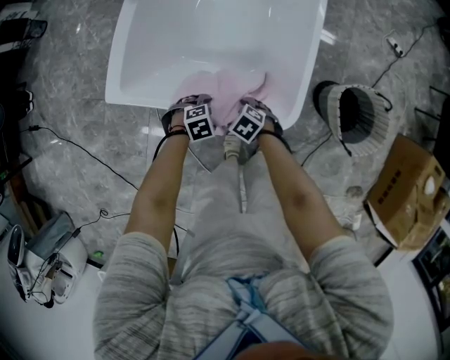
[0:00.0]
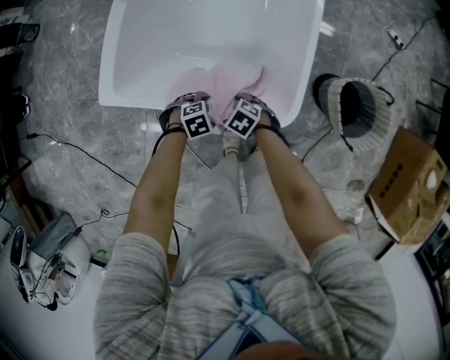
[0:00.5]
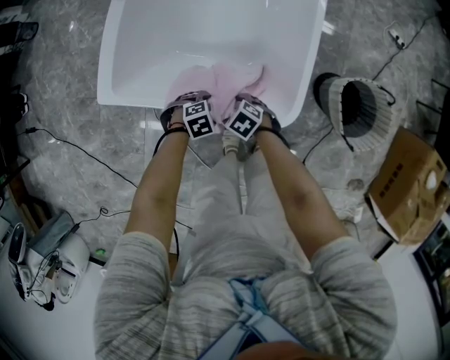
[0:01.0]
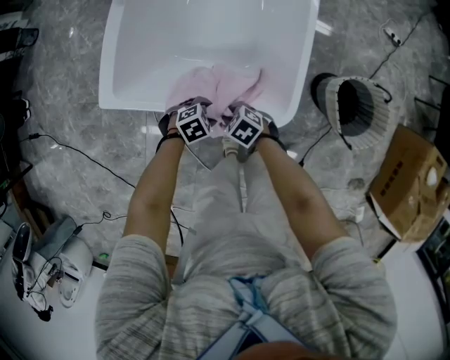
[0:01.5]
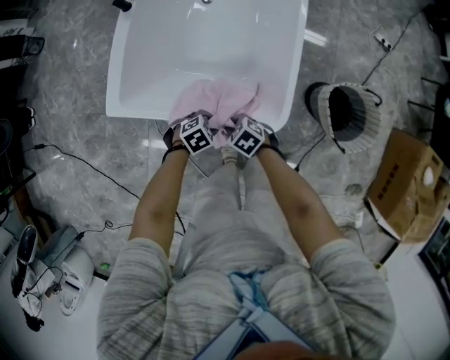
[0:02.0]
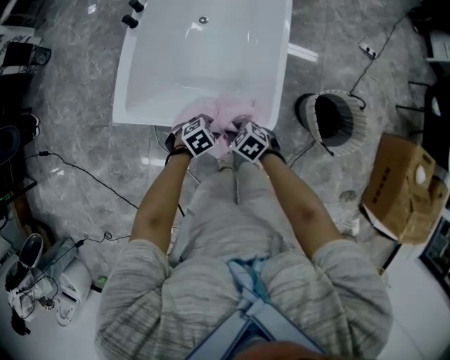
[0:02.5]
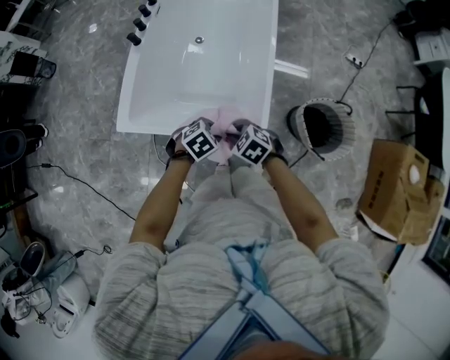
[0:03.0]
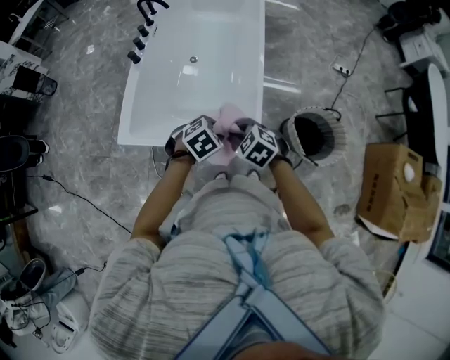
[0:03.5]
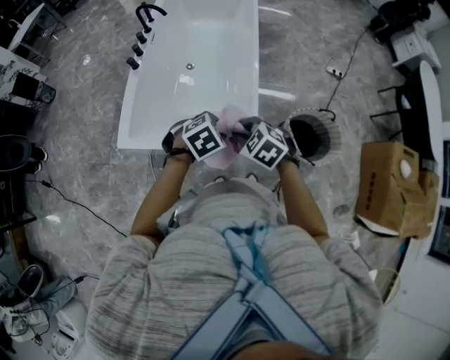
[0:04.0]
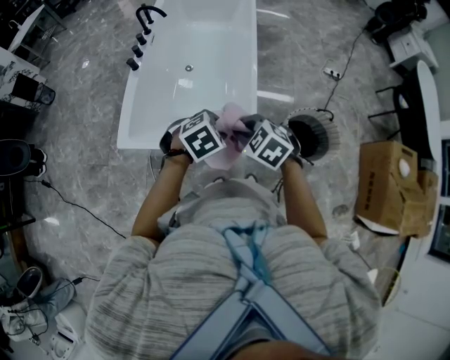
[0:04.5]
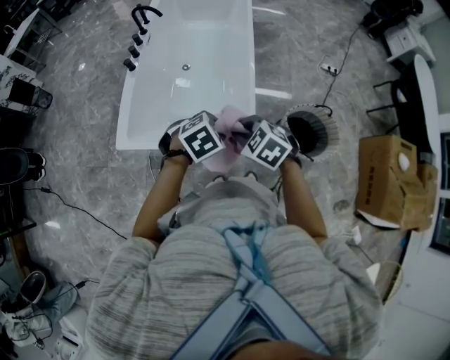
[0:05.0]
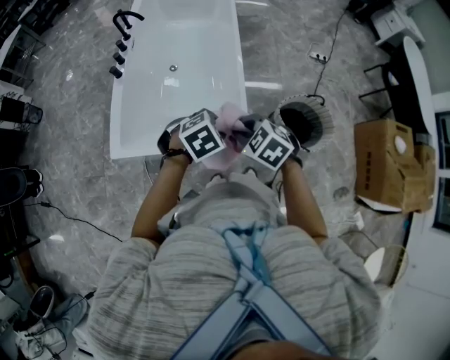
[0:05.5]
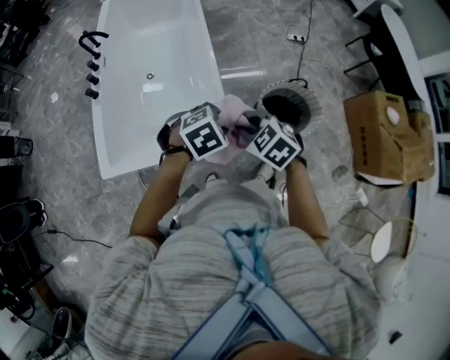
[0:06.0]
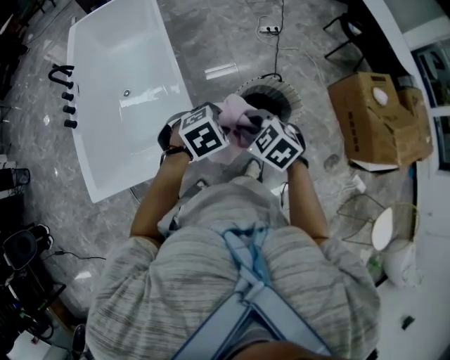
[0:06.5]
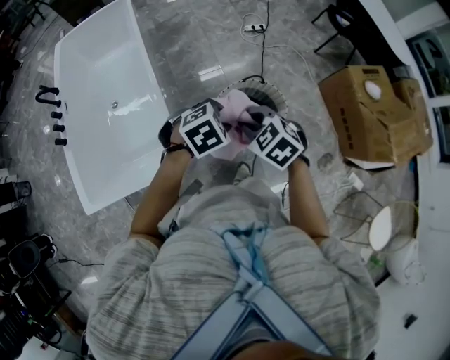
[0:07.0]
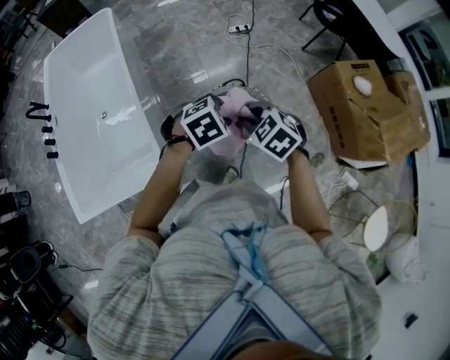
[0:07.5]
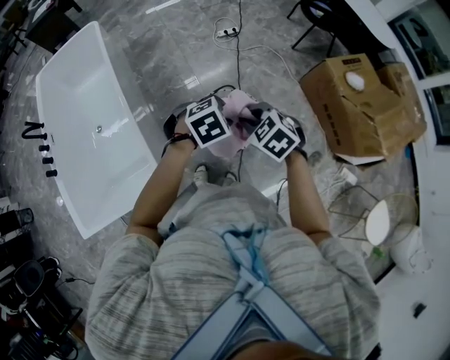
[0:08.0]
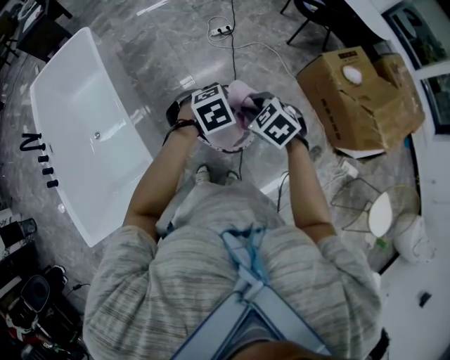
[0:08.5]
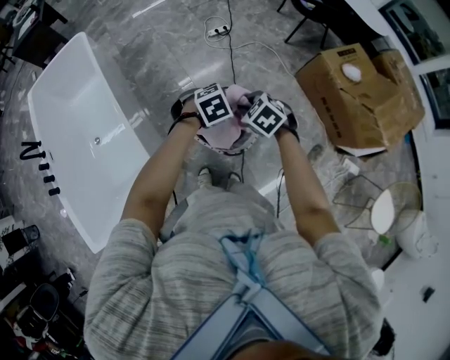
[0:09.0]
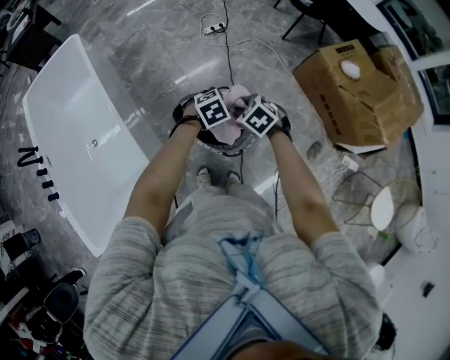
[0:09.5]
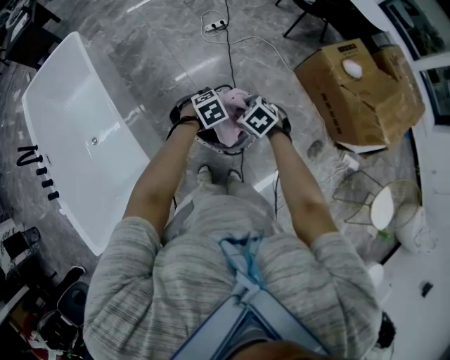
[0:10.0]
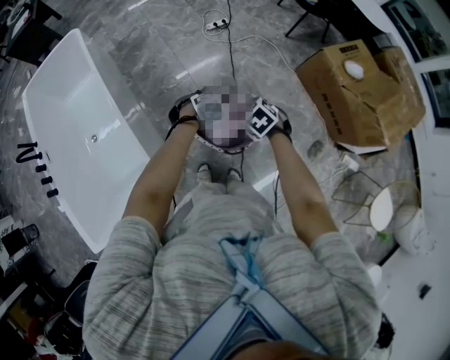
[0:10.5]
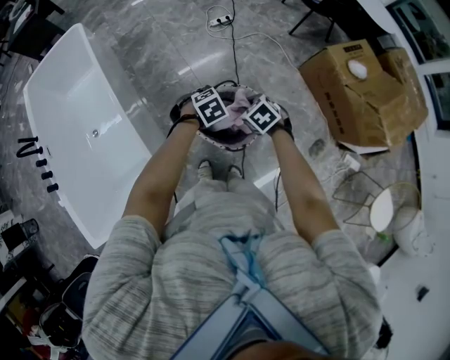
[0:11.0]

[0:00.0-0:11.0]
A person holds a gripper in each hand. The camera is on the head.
0.0 to 2.0 s: The right gripper goes some 5 cm upward, and closes its fingers; the left gripper ends up roughly 5 cm from where it was, and closes its fingers.
2.0 to 3.5 s: Both grippers travel together upward, approximately 25 cm. The right gripper turns by approximately 20 degrees.
3.5 to 5.5 s: Both grippers travel together upward, some 10 cm.
5.5 to 7.5 s: The two grippers travel together, to the right and forward, about 50 cm. The right gripper swivels roughly 20 degrees, while the left gripper changes its angle by some 20 degrees.
7.5 to 9.0 s: Both grippers travel together forward and downward, about 15 cm.
9.0 to 11.0 s: Both grippers move downward, approximately 10 cm.

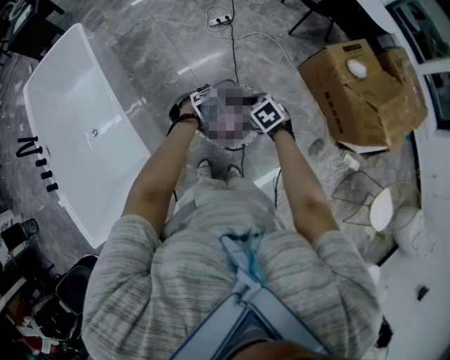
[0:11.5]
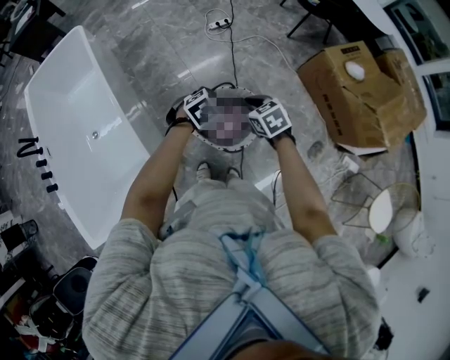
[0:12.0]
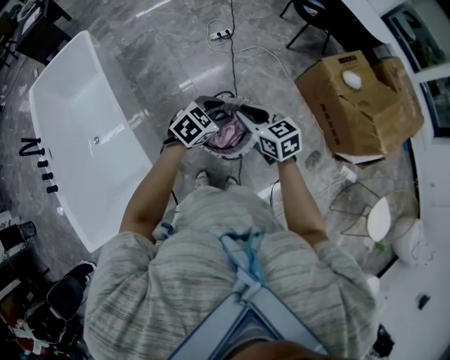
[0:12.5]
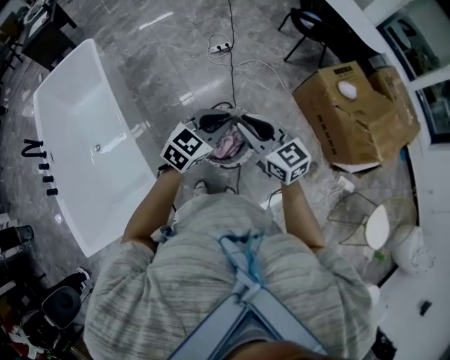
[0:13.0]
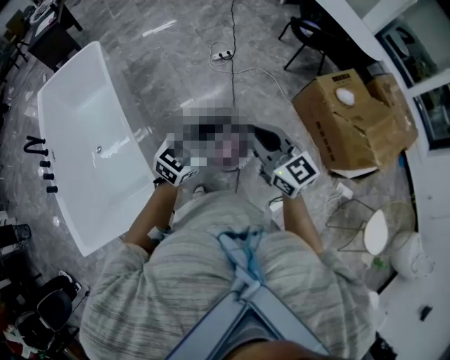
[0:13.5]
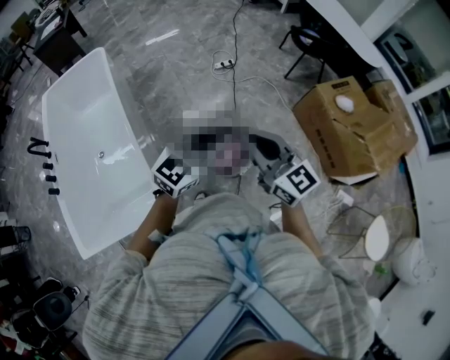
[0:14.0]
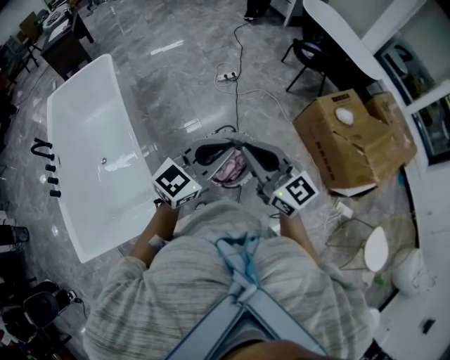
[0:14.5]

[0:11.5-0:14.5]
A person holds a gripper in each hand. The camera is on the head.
11.5 to 13.0 s: Both grippers move upward, some 20 cm. The left gripper angles its fingers upward, by roughly 50 degrees, and closes up. Meanwhile the right gripper angles its fingers upward, by some 50 degrees.
13.0 to 14.5 s: The grippers both shift upward and backward by roughly 15 cm. The left gripper swivels some 20 degrees.

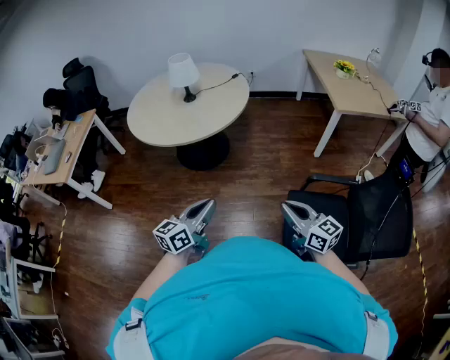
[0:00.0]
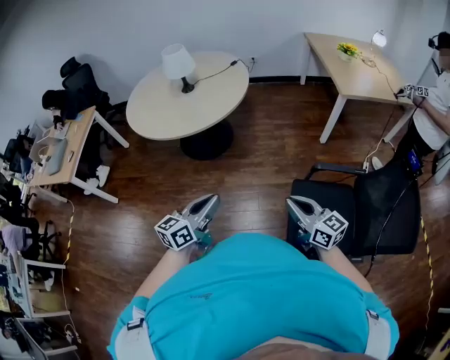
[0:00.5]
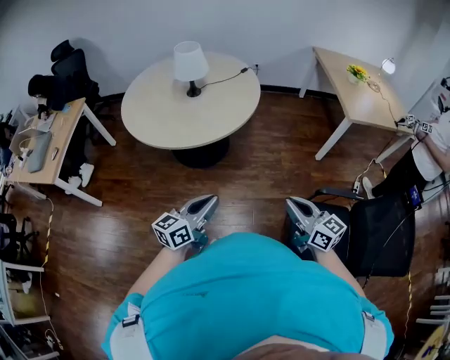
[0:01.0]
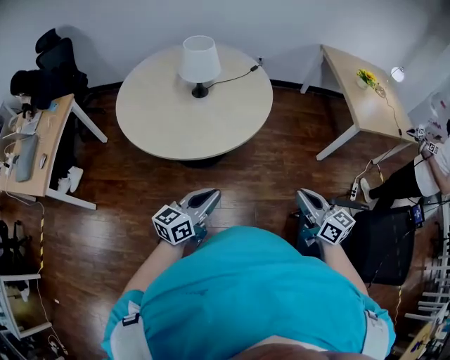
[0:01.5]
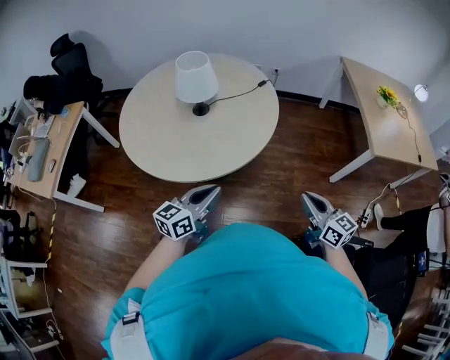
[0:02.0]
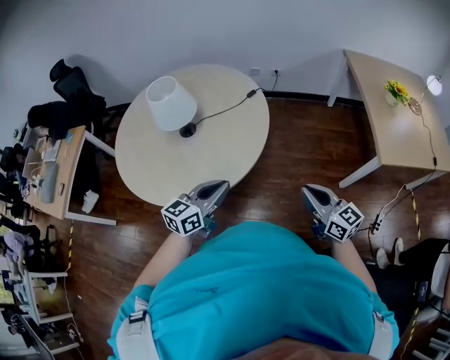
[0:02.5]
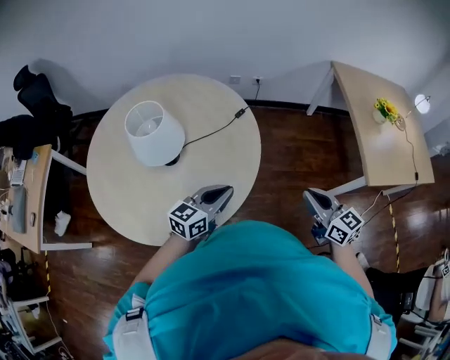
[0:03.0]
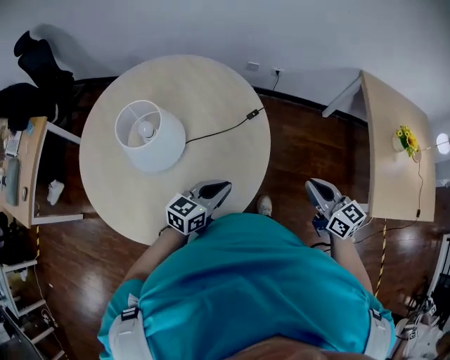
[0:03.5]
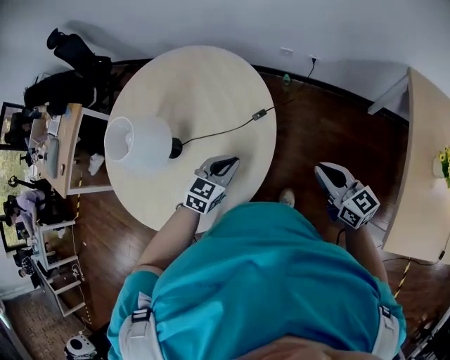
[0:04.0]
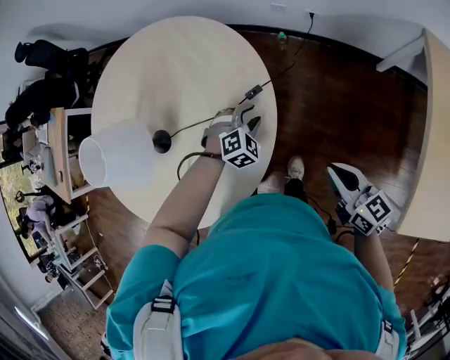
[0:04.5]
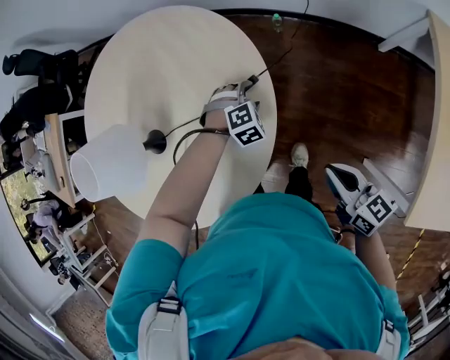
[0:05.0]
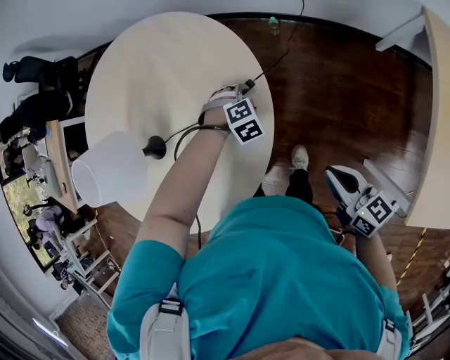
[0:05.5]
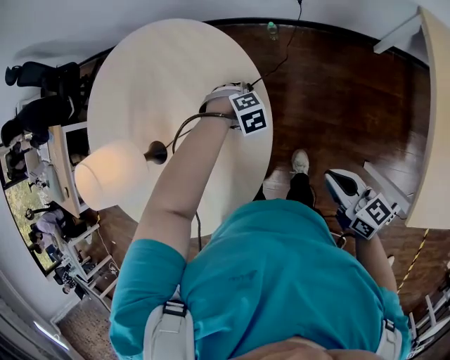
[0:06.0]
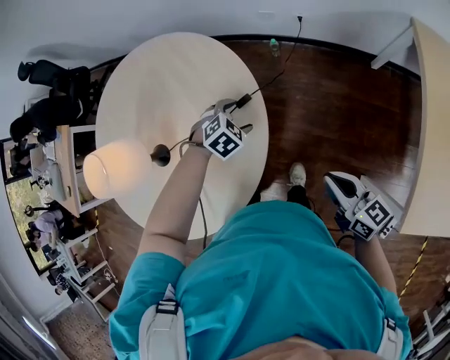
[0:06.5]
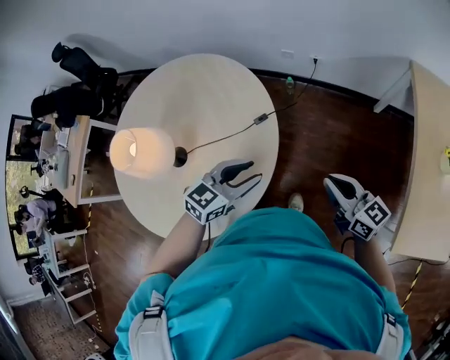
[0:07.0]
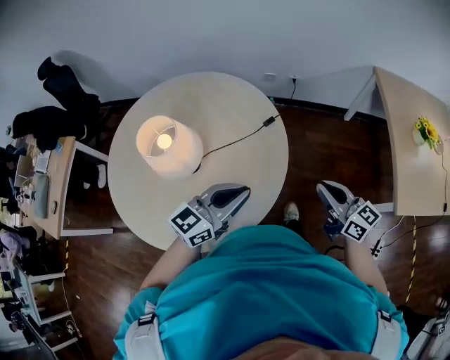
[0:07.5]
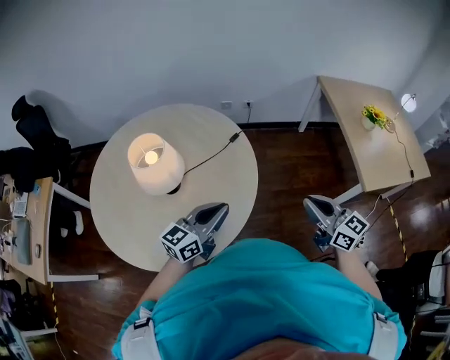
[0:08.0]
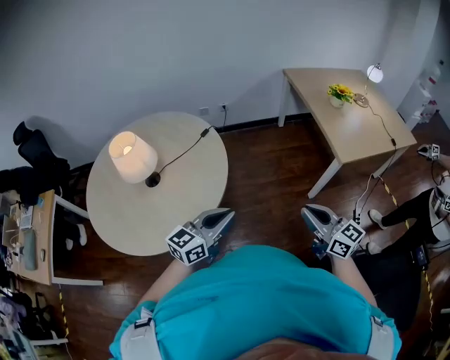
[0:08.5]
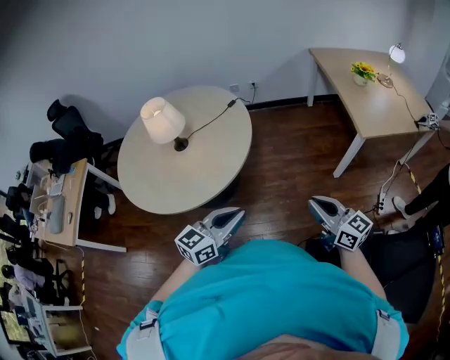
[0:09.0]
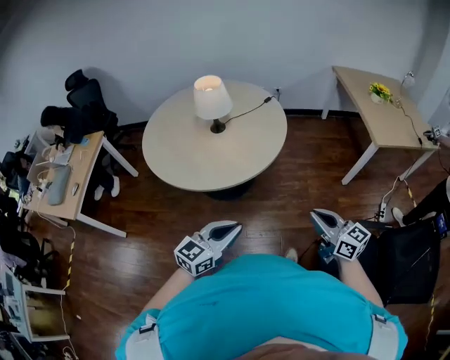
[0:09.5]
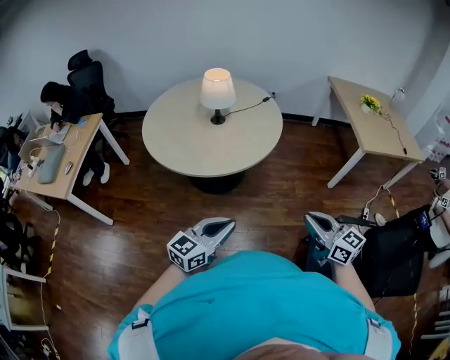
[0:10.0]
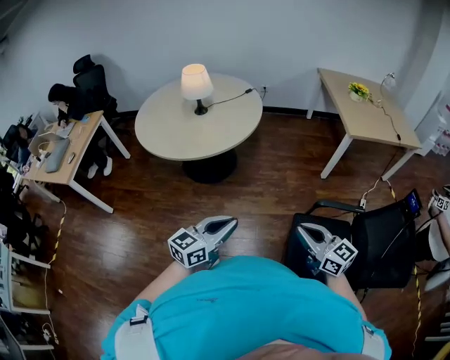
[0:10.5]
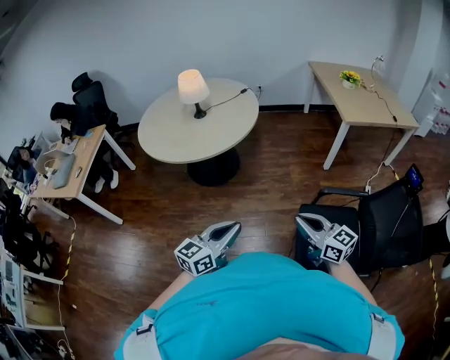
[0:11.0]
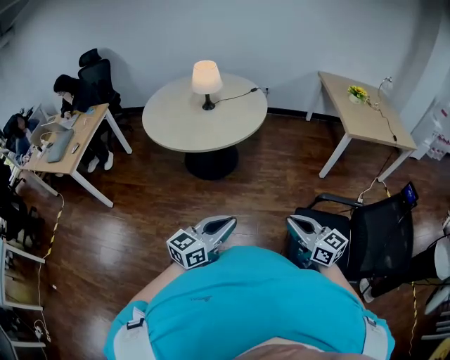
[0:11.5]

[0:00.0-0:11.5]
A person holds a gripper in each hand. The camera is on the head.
0.0 to 2.0 s: The two grippers travel together, forward, about 60 cm.
2.0 to 4.0 s: The pair of grippers is taken forward and to the right, approximately 80 cm. The left gripper tips its fingers downward by approximately 30 degrees.
4.0 to 6.0 s: The left gripper goes approximately 25 cm downward, angles its fingers downward, by about 50 degrees, and opens up, while the right gripper travels downward by about 15 cm, and rotates some 20 degrees.
6.0 to 7.5 s: The right gripper changes place by some 50 cm, and swivels approximately 20 degrees. Meanwhile the left gripper is displaced upward by roughly 50 cm, angles its fingers upward, by some 90 degrees, and closes up.
7.5 to 9.5 s: The pair of grippers is taken backward, about 80 cm.
9.5 to 11.5 s: Both grippers move backward, some 35 cm.

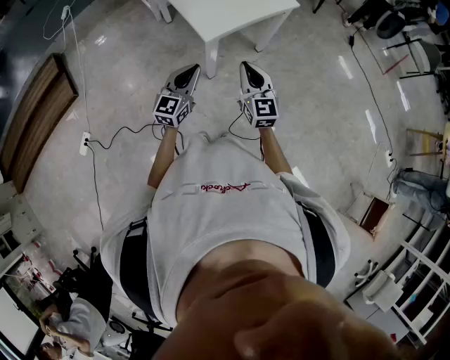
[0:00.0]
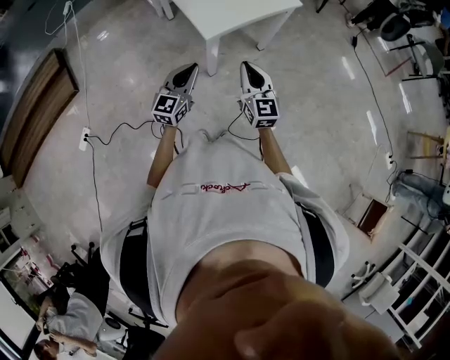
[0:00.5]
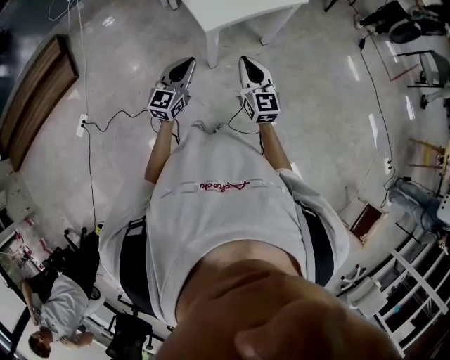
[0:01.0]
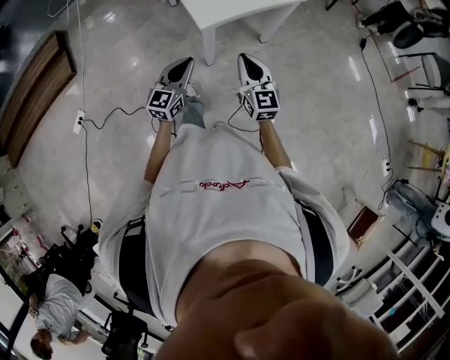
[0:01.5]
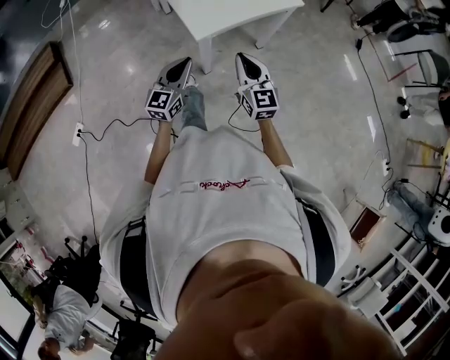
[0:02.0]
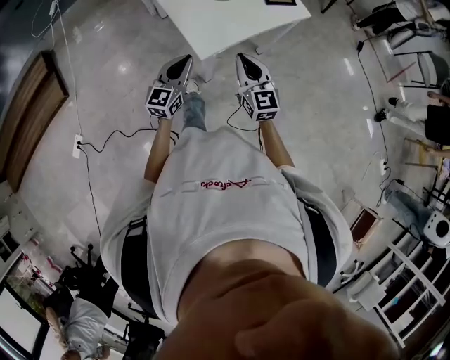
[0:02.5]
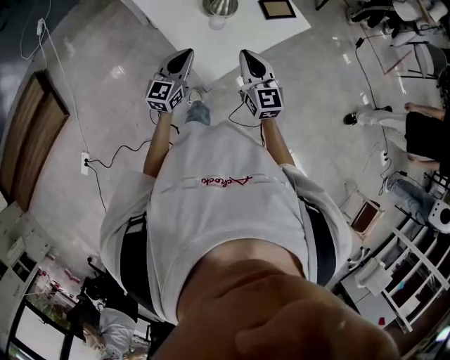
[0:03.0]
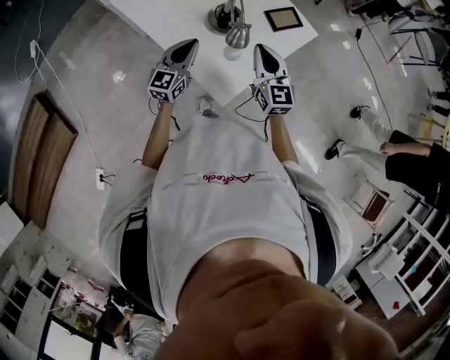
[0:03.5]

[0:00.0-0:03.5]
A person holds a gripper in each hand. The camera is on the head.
0.0 to 2.0 s: The two grippers go roughly 5 cm forward.
2.0 to 3.5 s: Both grippers move forward, roughly 30 cm.
